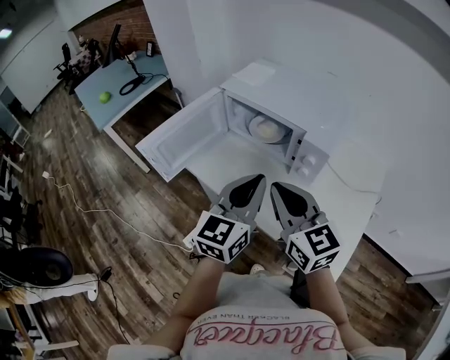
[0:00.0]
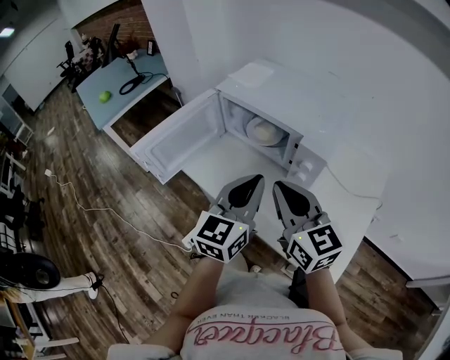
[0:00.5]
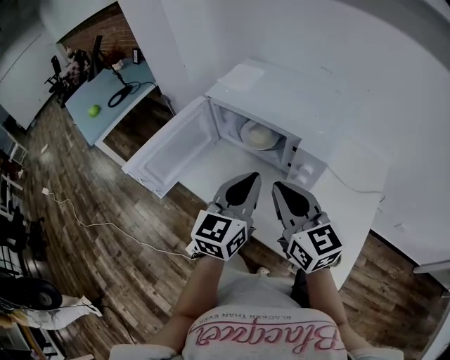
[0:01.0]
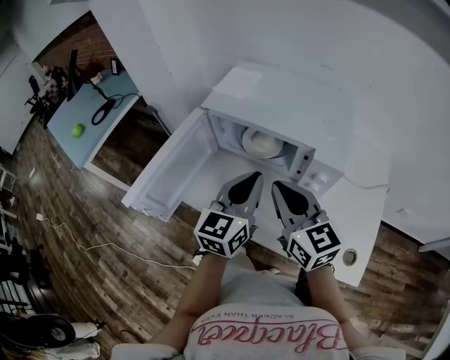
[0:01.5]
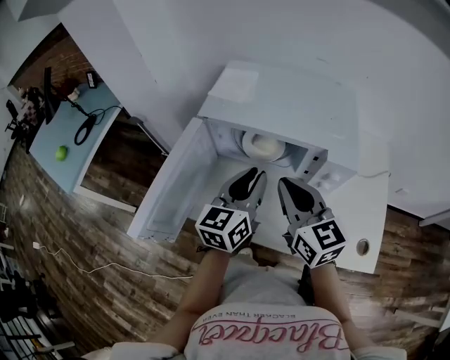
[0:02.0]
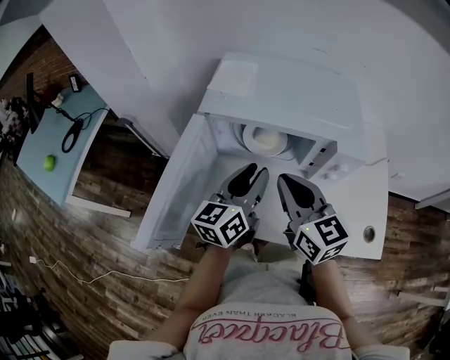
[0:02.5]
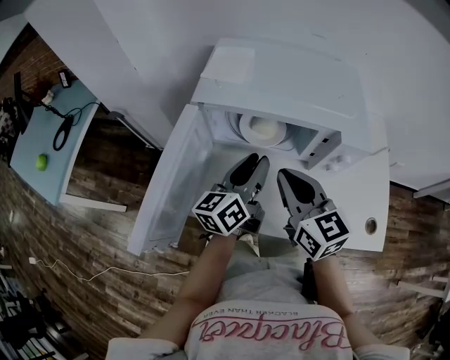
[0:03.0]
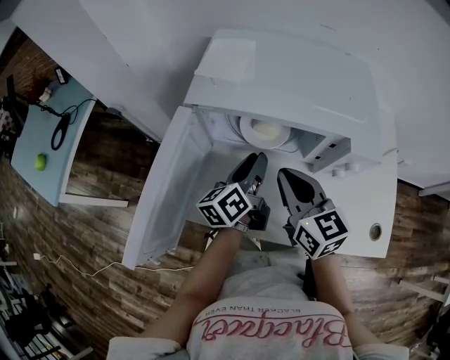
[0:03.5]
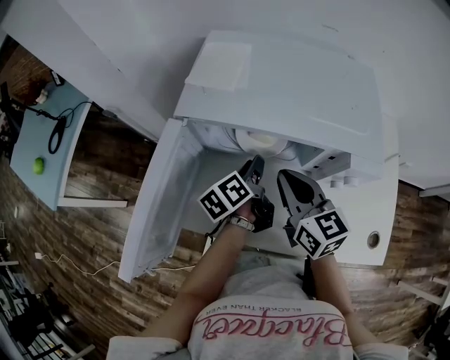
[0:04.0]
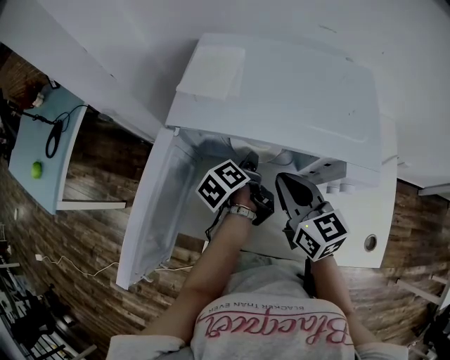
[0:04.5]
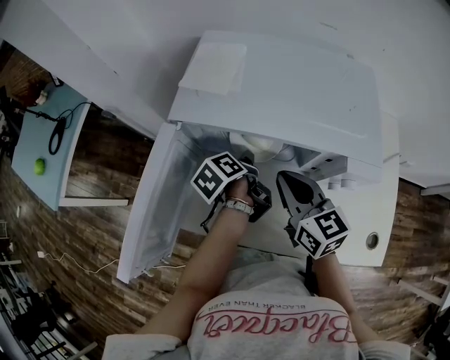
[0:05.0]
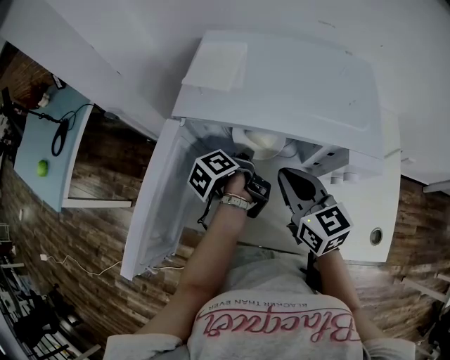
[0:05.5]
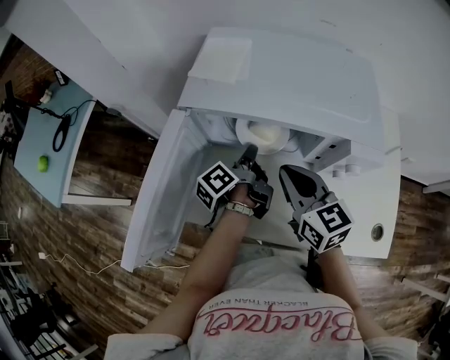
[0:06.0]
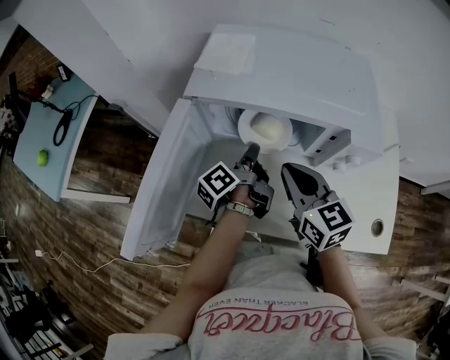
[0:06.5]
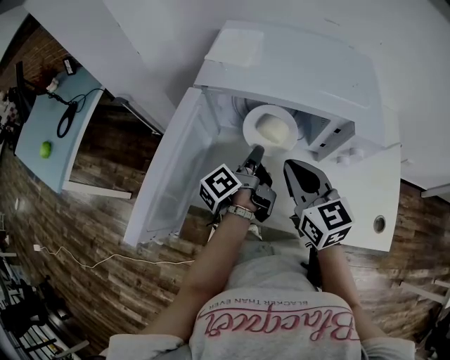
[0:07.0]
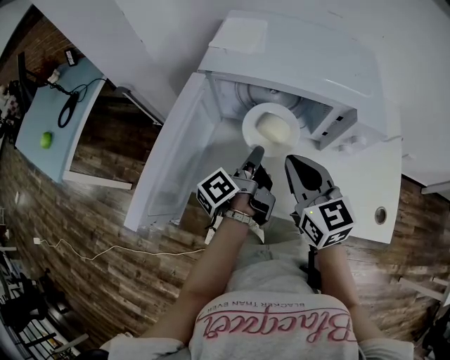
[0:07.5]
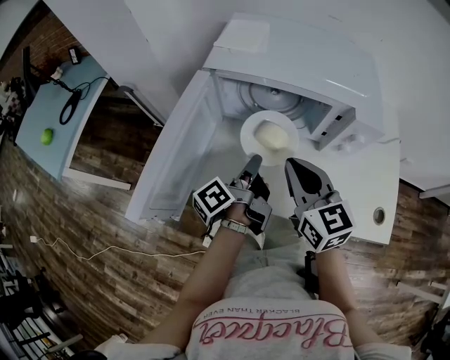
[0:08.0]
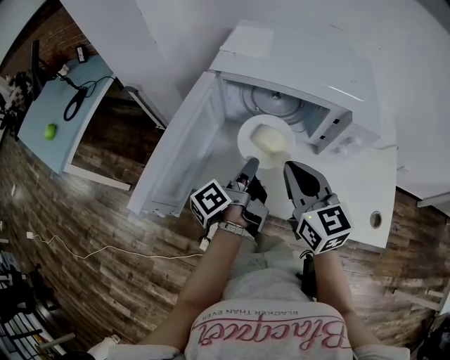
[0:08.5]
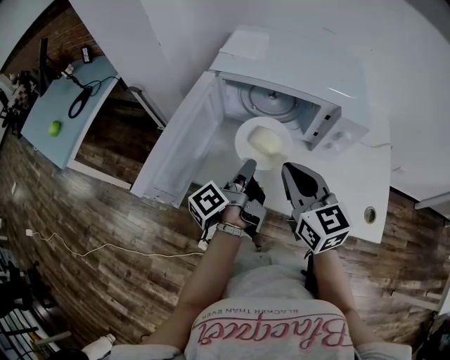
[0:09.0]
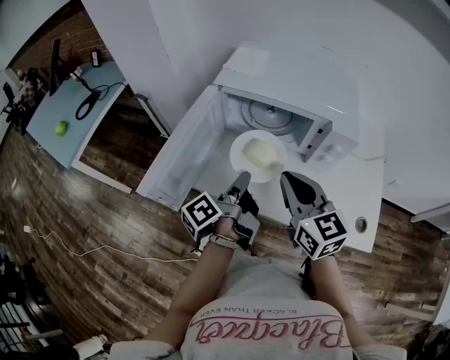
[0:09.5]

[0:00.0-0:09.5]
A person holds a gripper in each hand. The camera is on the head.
0:00.0 to 0:02.0: Both grippers travel together forward, some 15 cm. The right gripper changes its angle by about 20 degrees. The left gripper rotates about 20 degrees.
0:02.0 to 0:04.0: The left gripper goes roughly 20 cm downward and forward, and twists approximately 50 degrees counterclockwise, seen from behind, while the right gripper travels downward and forward by roughly 10 cm.
0:04.0 to 0:05.5: The left gripper changes its angle by about 20 degrees, and closes.
0:05.5 to 0:07.5: The two grippers go roughly 10 cm backward. The left gripper rotates about 30 degrees.
0:07.5 to 0:09.5: The grippers both shift backward and upward by about 10 cm.

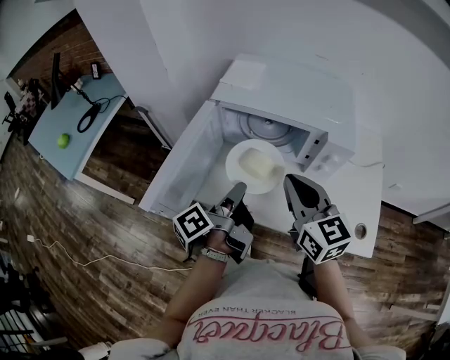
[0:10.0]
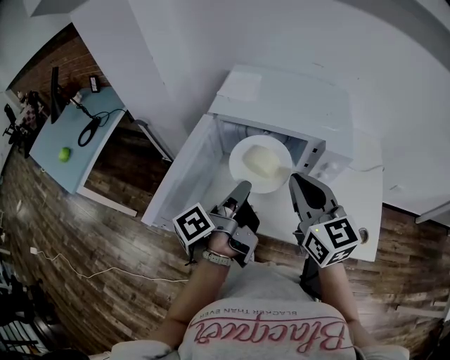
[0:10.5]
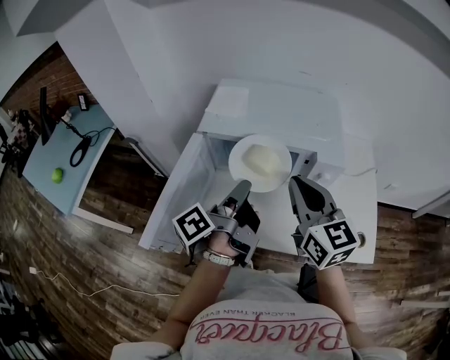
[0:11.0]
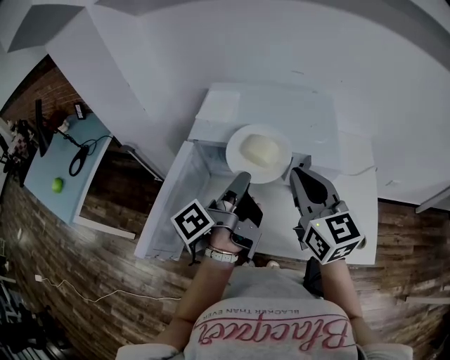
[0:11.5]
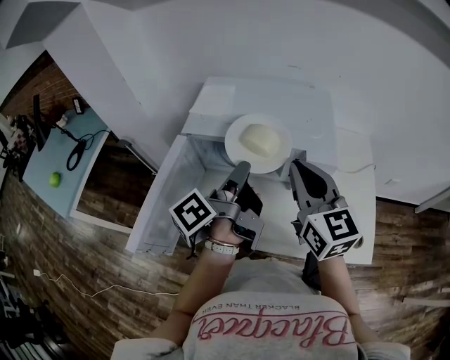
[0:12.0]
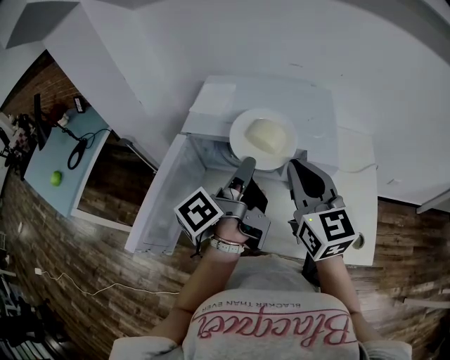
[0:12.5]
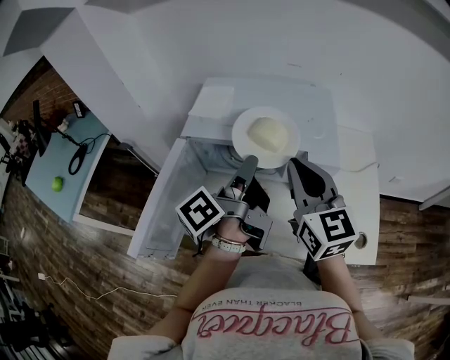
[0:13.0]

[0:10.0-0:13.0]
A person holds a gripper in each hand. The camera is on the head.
0:10.0 to 0:11.5: Both grippers move forward, upward and to the right, about 10 cm.
0:11.5 to 0:13.0: The grippers make only small movements.

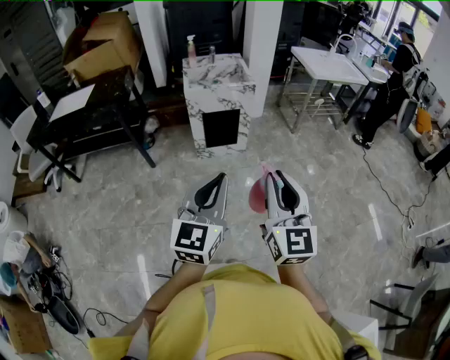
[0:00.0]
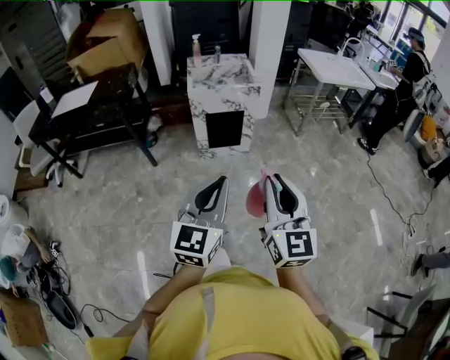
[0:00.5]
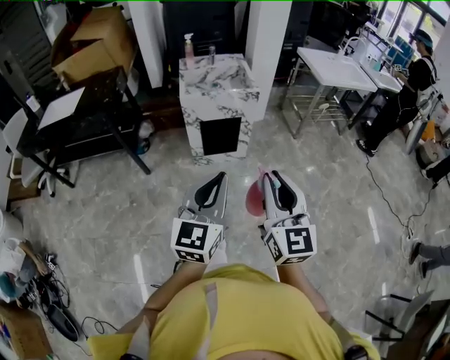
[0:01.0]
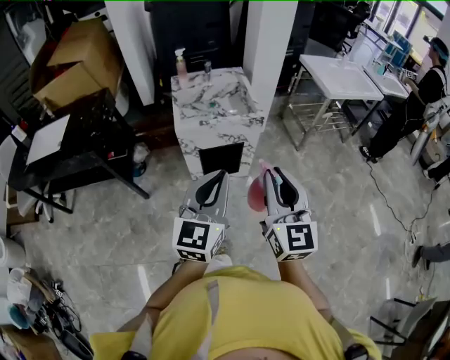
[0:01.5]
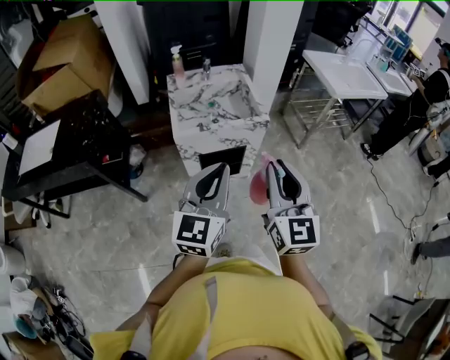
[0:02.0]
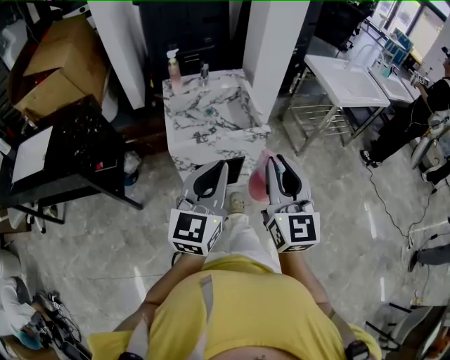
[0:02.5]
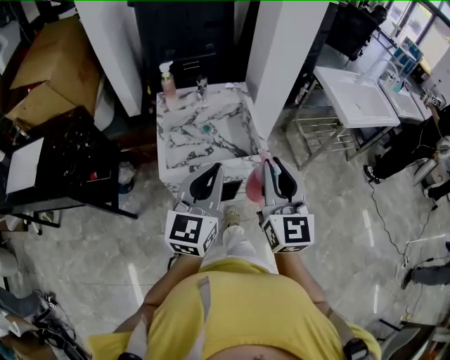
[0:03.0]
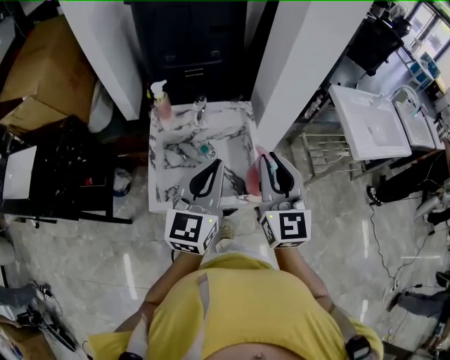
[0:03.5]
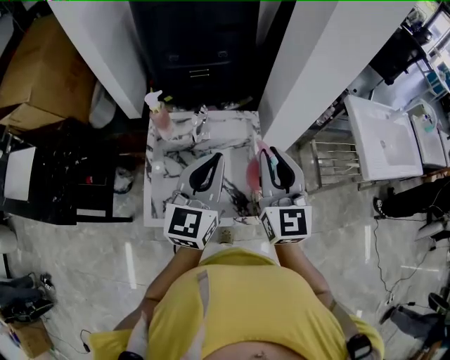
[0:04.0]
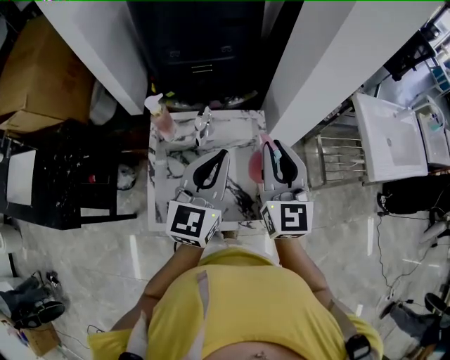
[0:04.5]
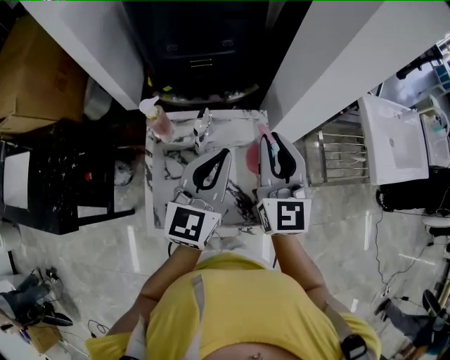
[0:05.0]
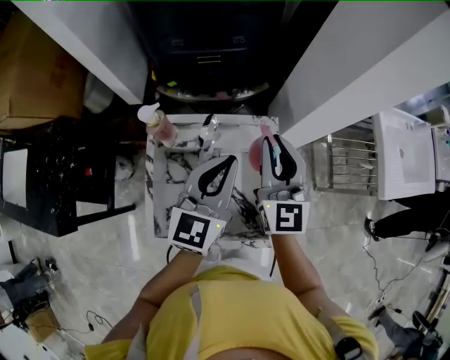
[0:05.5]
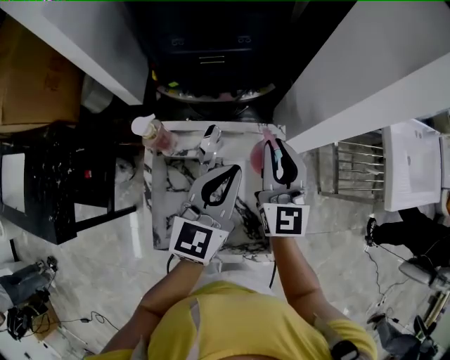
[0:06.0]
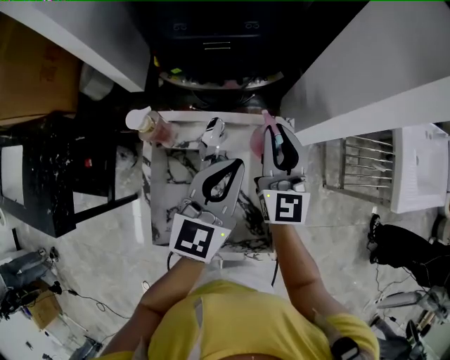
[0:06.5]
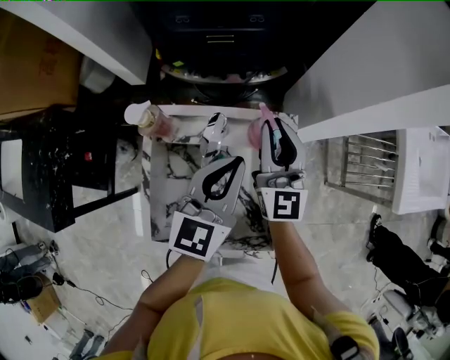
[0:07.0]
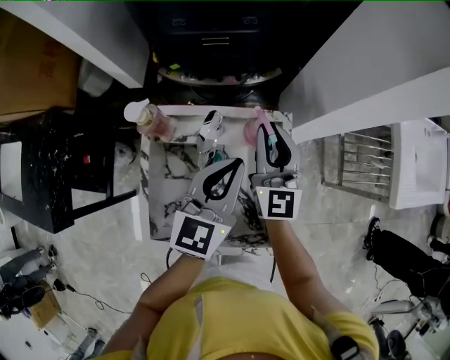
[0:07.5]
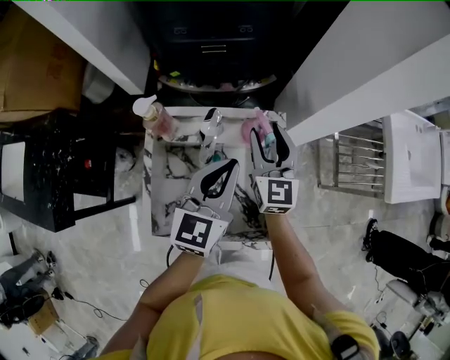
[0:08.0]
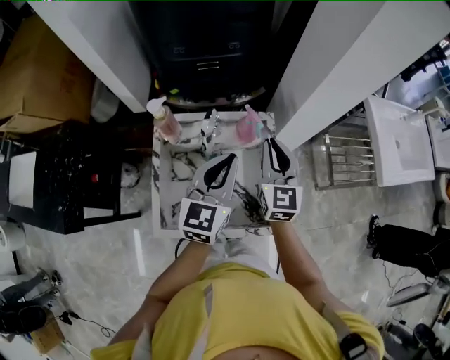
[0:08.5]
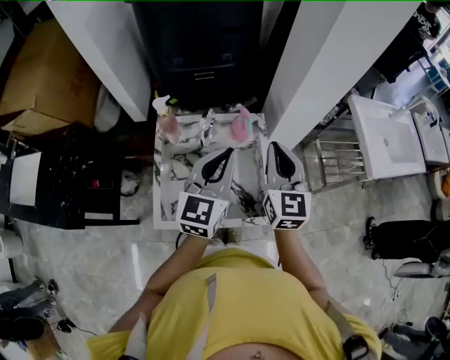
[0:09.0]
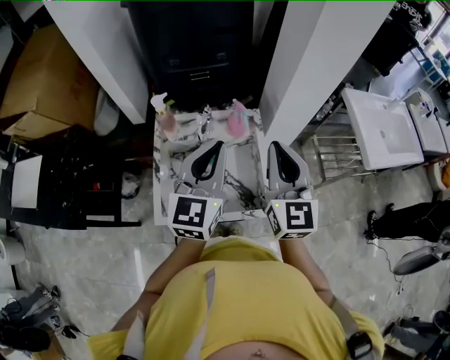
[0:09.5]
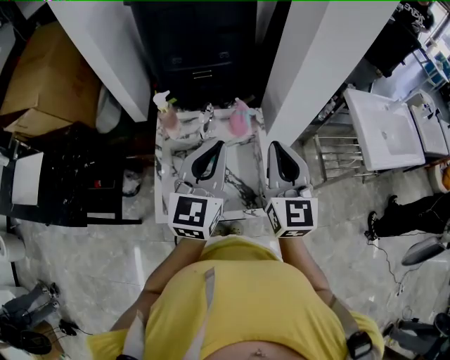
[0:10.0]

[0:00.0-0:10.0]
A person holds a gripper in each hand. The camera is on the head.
0:00.0 to 0:02.0: The pair of grippers is taken forward, roughly 50 cm.
0:02.0 to 0:04.0: Both grippers are carried forward, some 50 cm.
0:04.0 to 0:06.0: The grippers both shift forward and downward by some 20 cm.
0:06.0 to 0:08.0: The right gripper goes approximately 5 cm downward, and opens.
0:08.0 to 0:10.0: The right gripper shifts approximately 25 cm backward and upward, and closes up, while the left gripper moves upward and backward, approximately 20 cm.

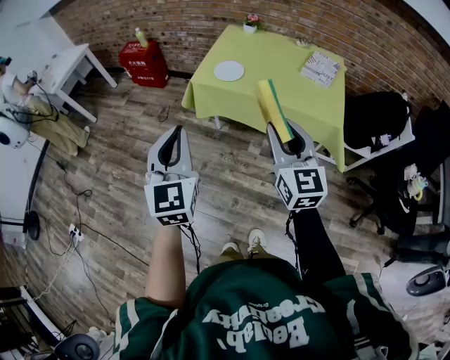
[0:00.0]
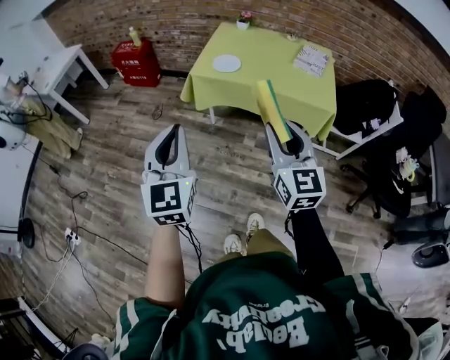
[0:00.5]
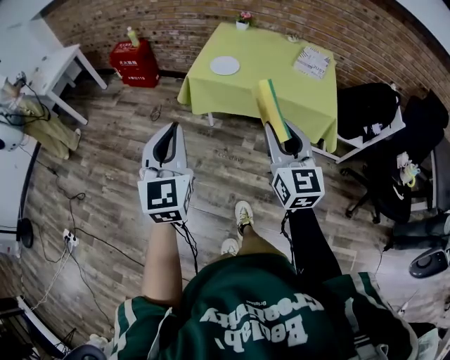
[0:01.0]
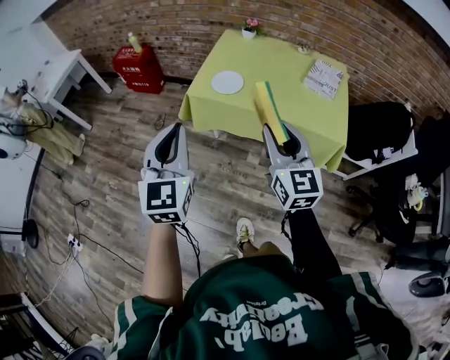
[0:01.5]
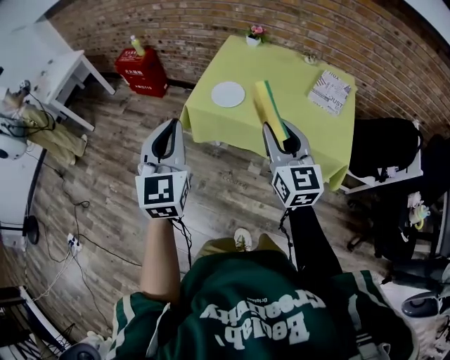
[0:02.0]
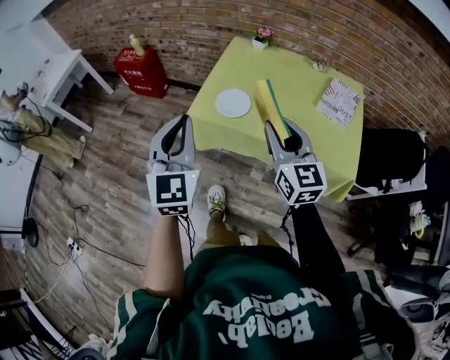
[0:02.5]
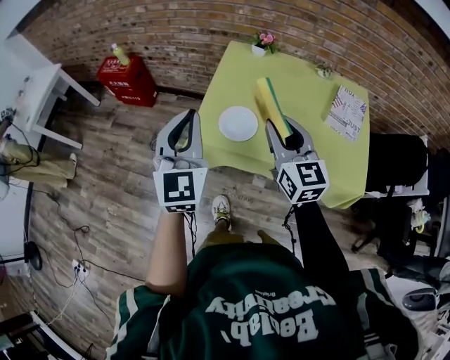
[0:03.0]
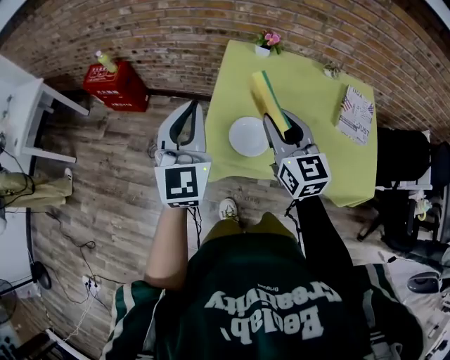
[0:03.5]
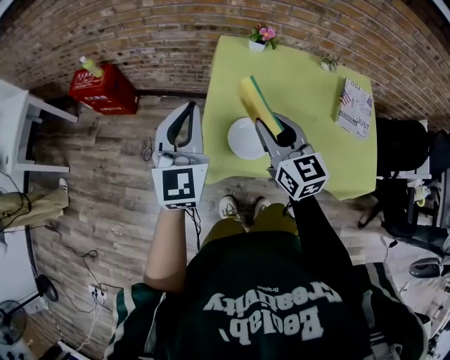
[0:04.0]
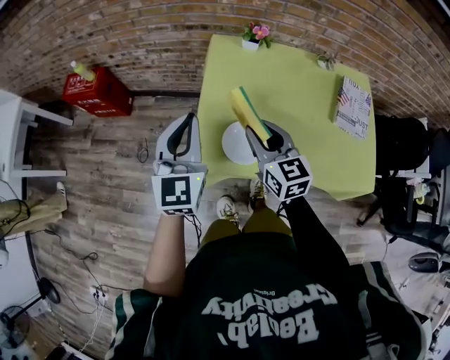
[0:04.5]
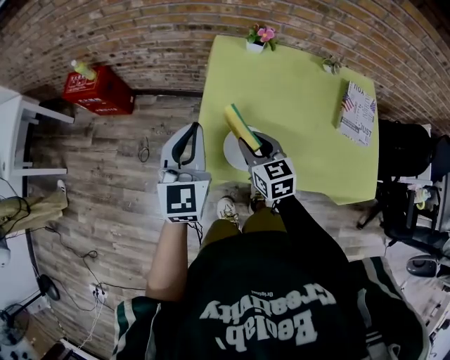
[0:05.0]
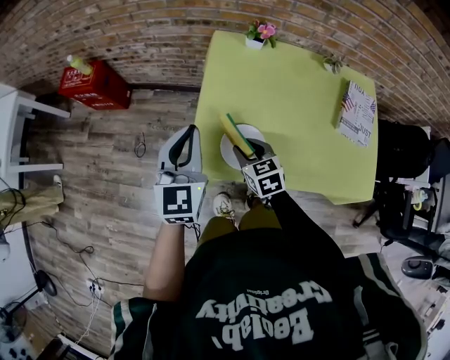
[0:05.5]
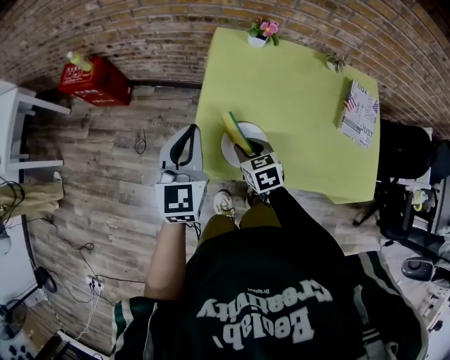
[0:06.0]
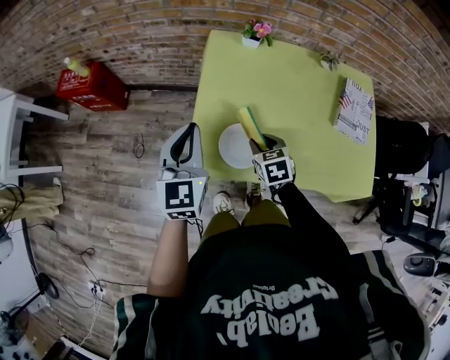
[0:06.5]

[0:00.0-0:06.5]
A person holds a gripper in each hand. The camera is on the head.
0:00.0 to 0:02.0: The grippers both shift forward by about 20 cm.
0:02.0 to 0:04.5: The two grippers go about 40 cm forward. The left gripper turns by roughly 20 degrees.
0:04.5 to 0:06.5: The right gripper travels downward by roughly 15 cm, and angles its fingers downward, by approximately 30 degrees; the left gripper ends up some 5 cm from where it was.
